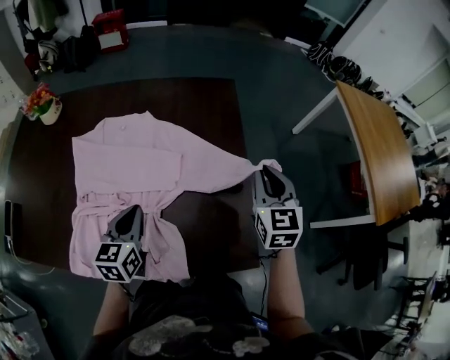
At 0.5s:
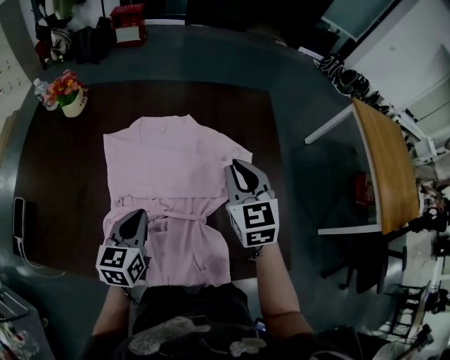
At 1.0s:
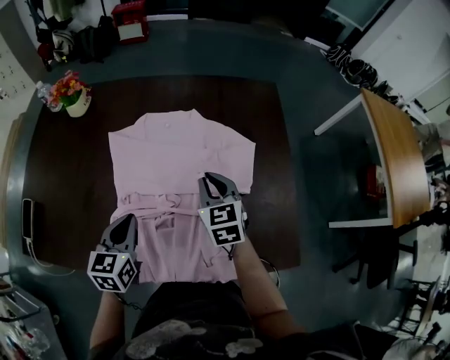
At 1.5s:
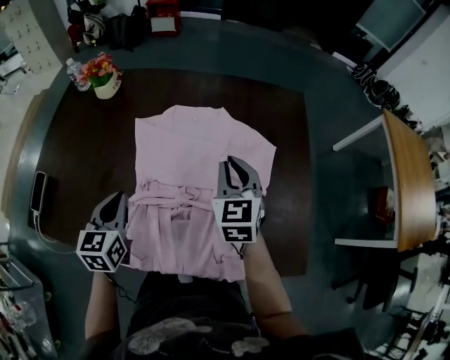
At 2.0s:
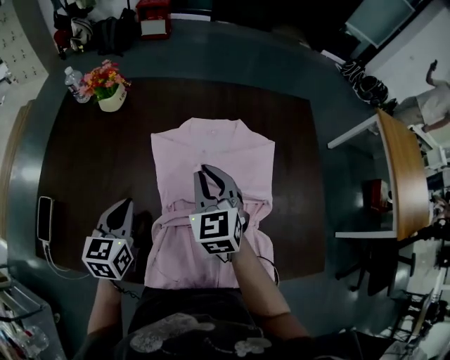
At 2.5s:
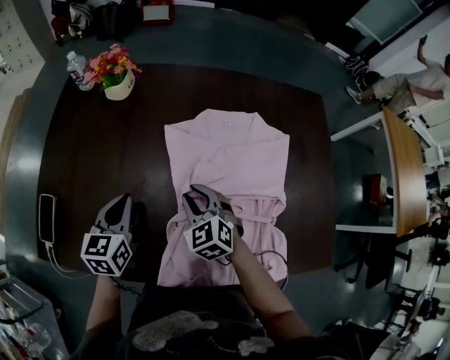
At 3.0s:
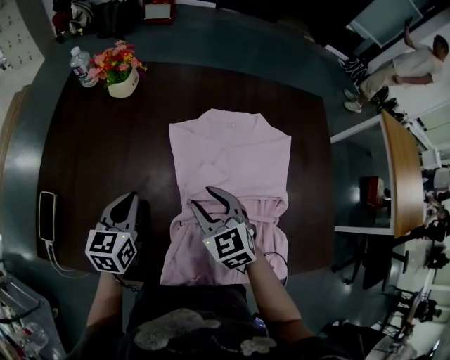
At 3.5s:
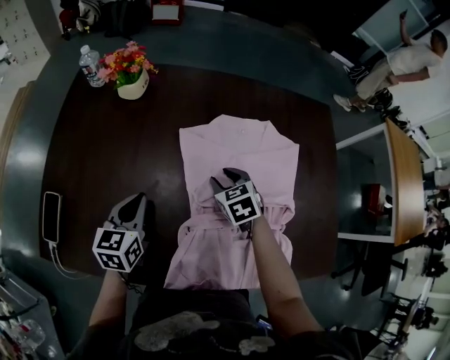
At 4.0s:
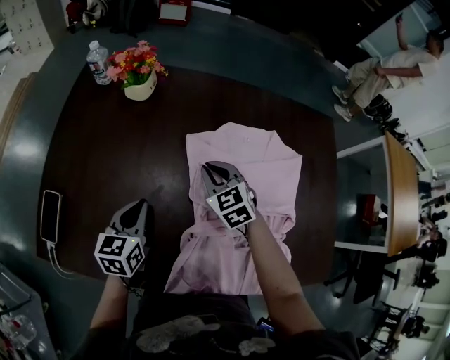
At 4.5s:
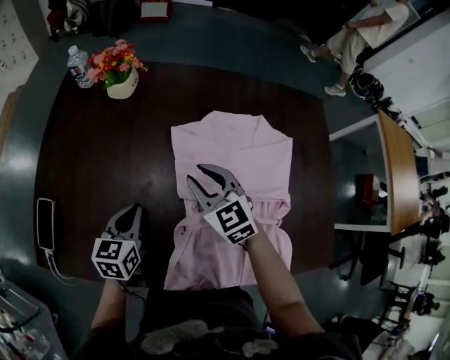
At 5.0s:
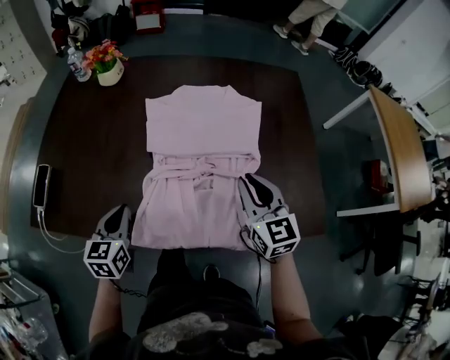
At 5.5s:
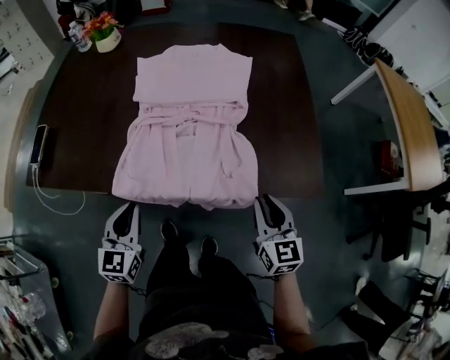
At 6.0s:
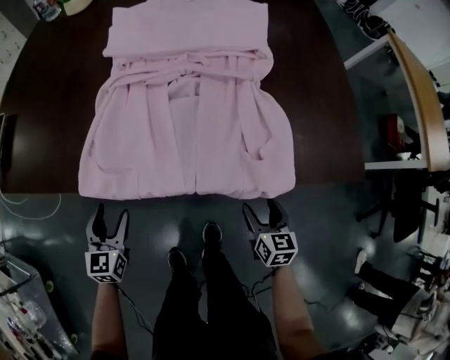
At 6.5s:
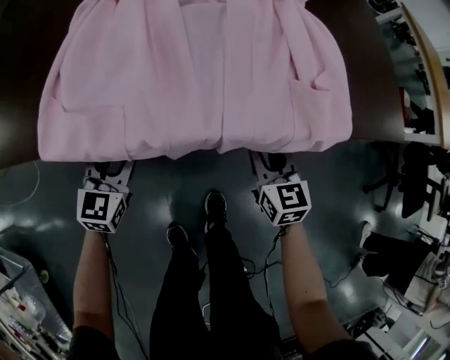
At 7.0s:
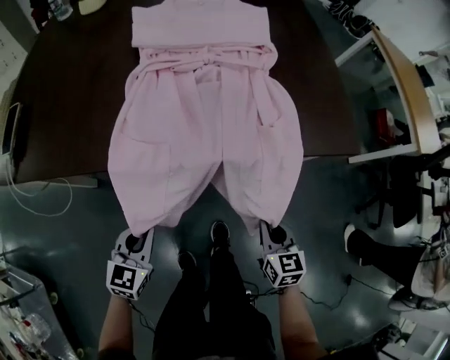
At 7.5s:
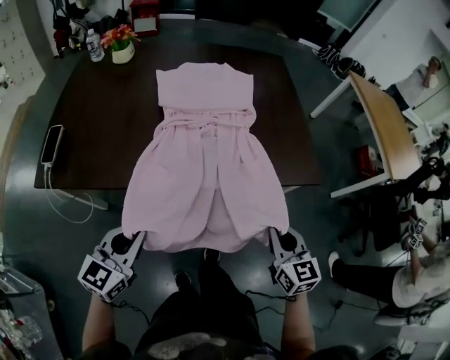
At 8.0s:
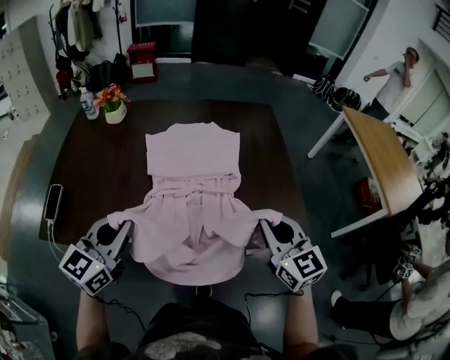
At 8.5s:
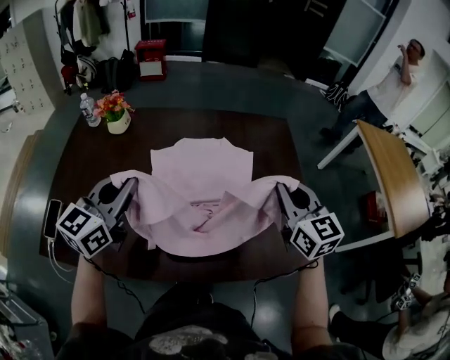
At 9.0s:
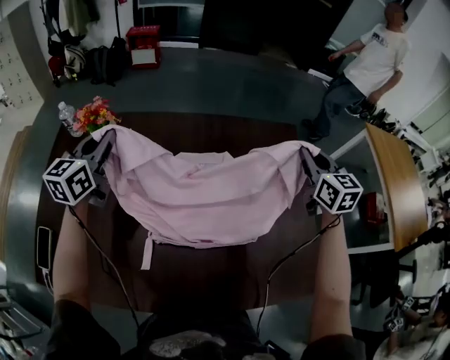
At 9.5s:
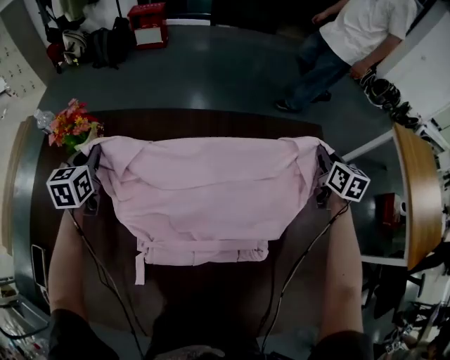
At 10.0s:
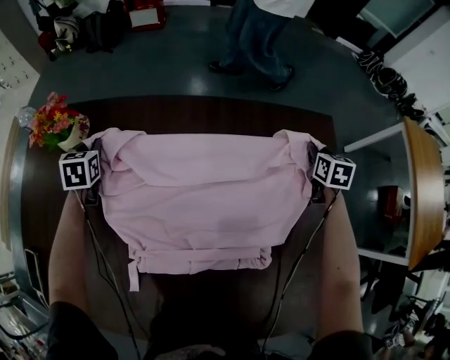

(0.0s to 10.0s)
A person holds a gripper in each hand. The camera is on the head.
0.0s - 2.0s: The grippers both shift to the left by some 40 cm.
2.0s - 4.0s: The right gripper swings up and down, some 15 cm each way, with 3 reversals, changes its angle by some 20 degrees, and opens and closes again, while the left gripper heads to the left and downward, covering some 10 cm.
4.0s - 6.0s: The left gripper moves backward and downward, approximately 40 cm, and opens up. Meanwhile the right gripper goes some 60 cm backward, to the right and downward, rolls clockwise, seen from behind, by roughly 40 degrees, and opens up.
6.0s - 8.0s: The two grippers go some 40 cm upward. The right gripper rotates some 30 degrees, and closes up; the left gripper turns by about 30 degrees, and closes its fingers.
8.0s - 10.0s: The pair of grippers is taken forward, some 60 cm. The right gripper angles its fingers downward, by roughly 30 degrees. Meanwhile the left gripper goes some 25 cm downward, and points its fingers some 40 degrees further downward.

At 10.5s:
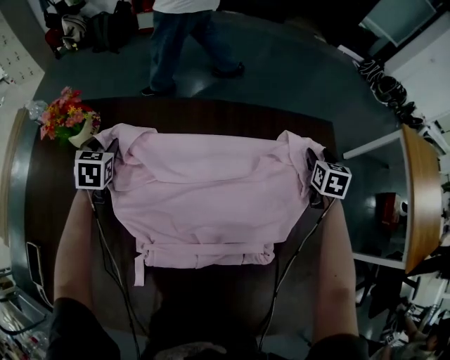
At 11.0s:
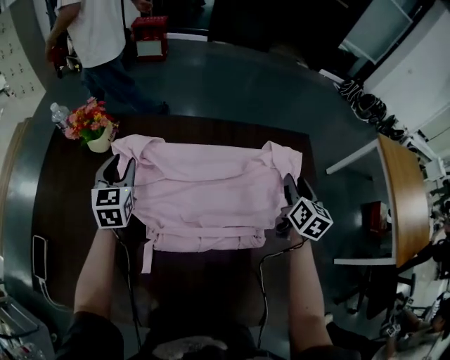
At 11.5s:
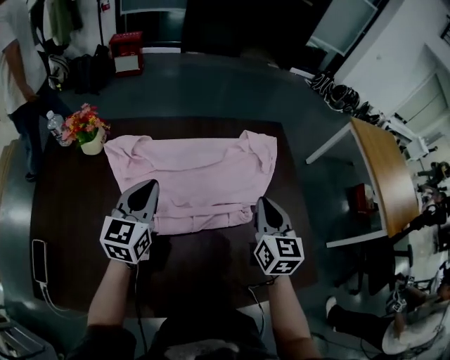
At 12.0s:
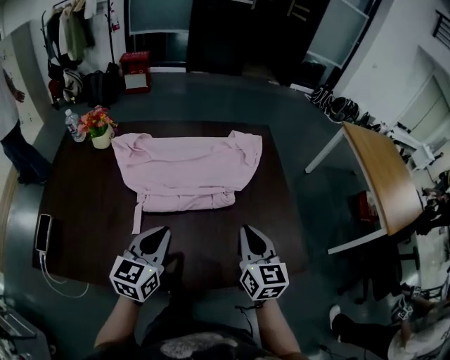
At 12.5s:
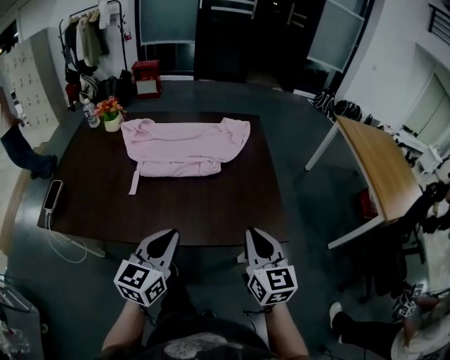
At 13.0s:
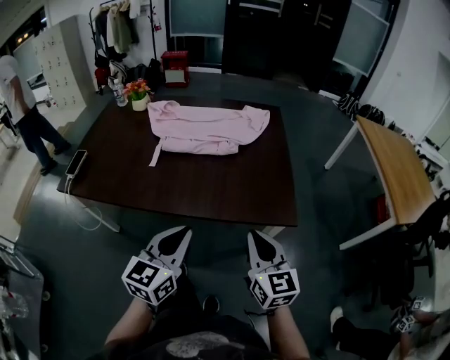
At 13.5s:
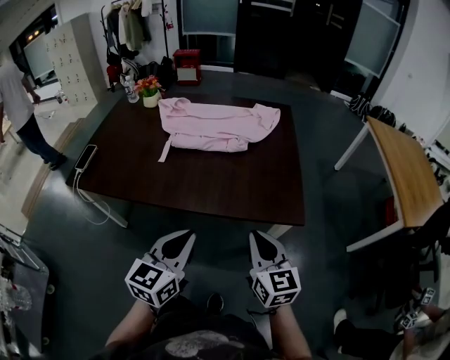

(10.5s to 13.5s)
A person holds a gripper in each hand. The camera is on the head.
10.5s - 12.0s: The left gripper goes some 50 cm backward, to the right and upward, turns by about 40 degrees, and closes its fingers; the right gripper goes some 50 cm backward, swivels about 30 degrees, and closes its fingers.
12.0s - 13.5s: The right gripper goes roughly 30 cm backward, while the left gripper shifts some 35 cm backward and to the right.

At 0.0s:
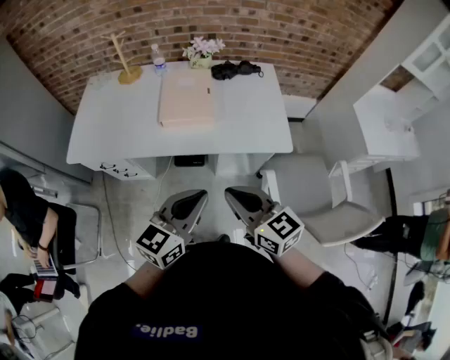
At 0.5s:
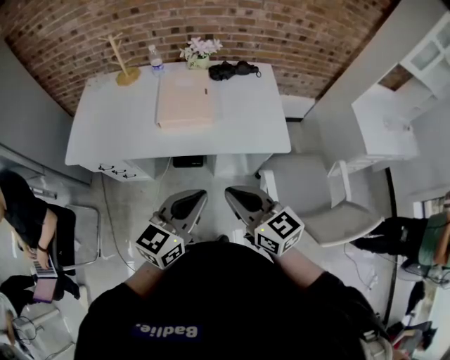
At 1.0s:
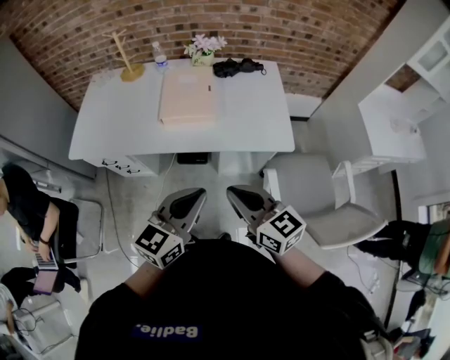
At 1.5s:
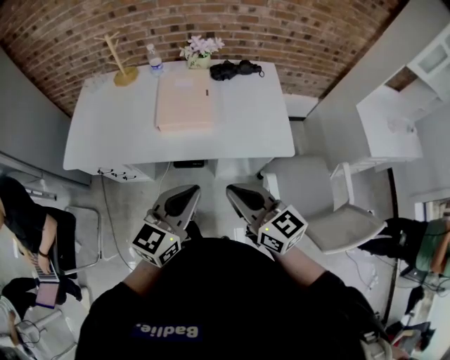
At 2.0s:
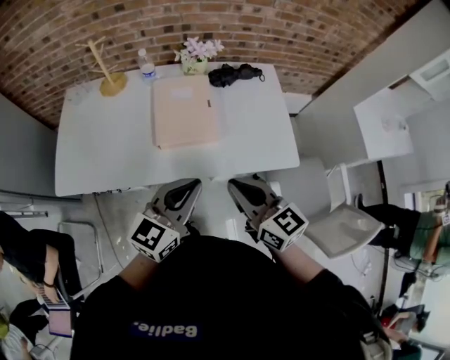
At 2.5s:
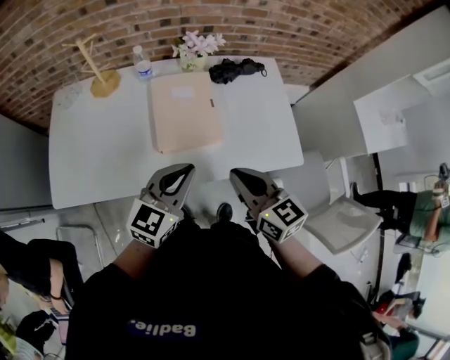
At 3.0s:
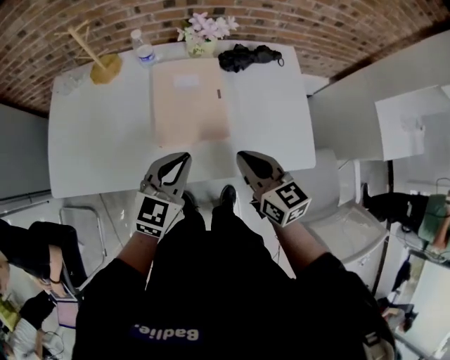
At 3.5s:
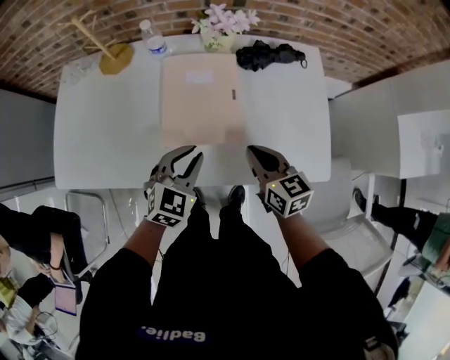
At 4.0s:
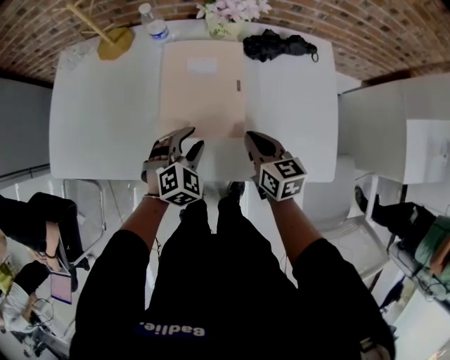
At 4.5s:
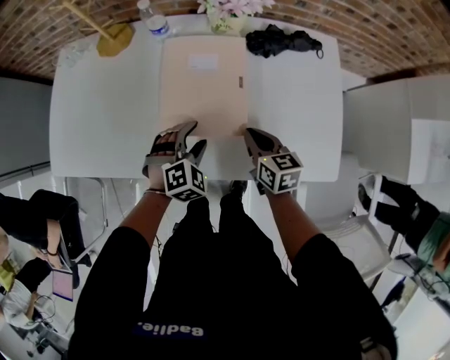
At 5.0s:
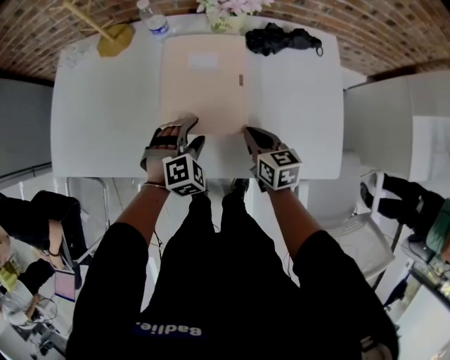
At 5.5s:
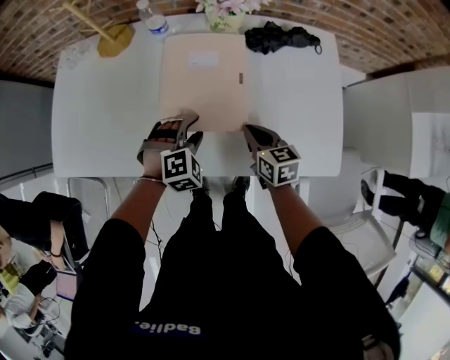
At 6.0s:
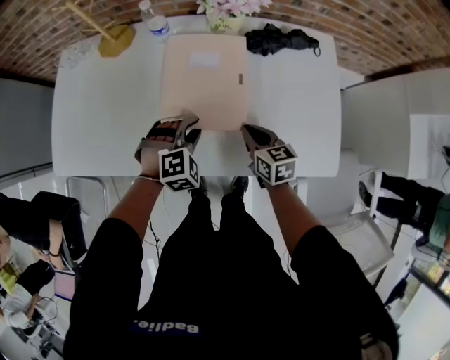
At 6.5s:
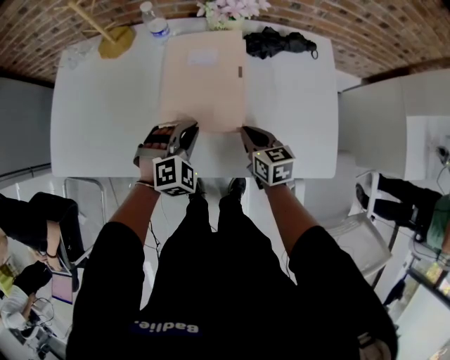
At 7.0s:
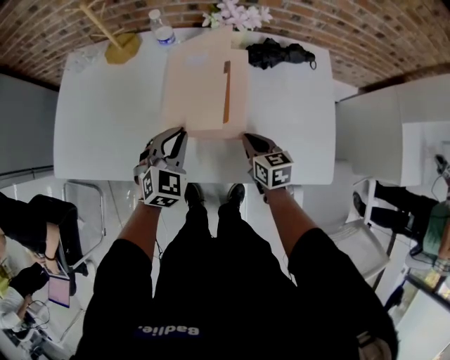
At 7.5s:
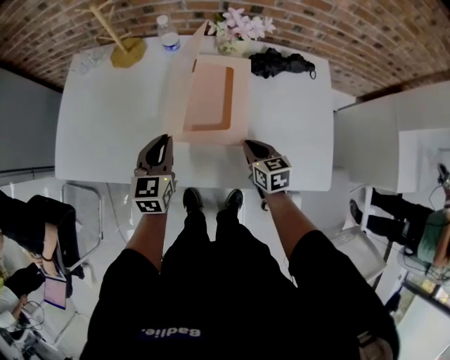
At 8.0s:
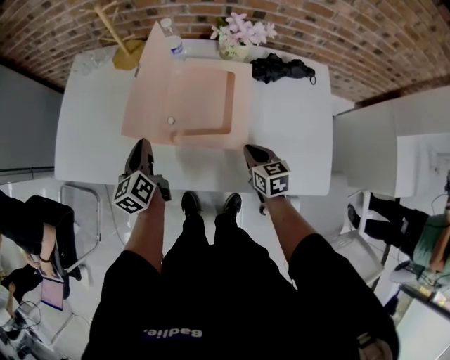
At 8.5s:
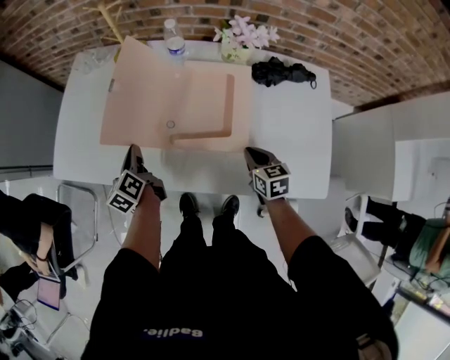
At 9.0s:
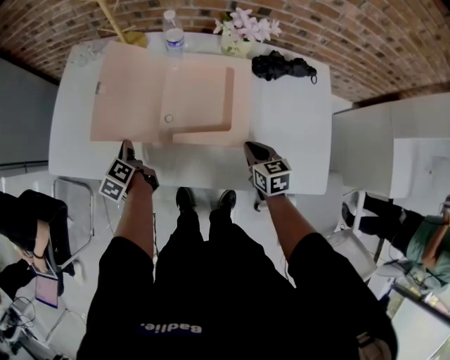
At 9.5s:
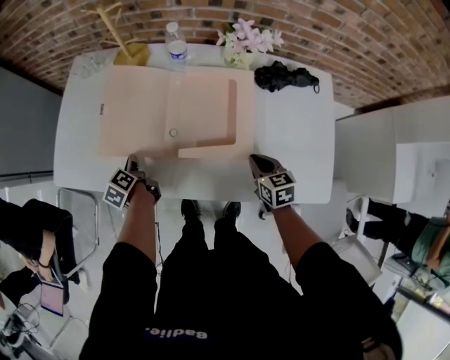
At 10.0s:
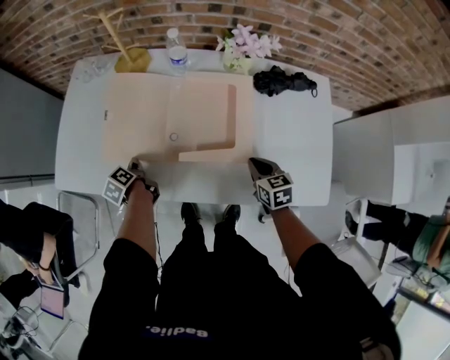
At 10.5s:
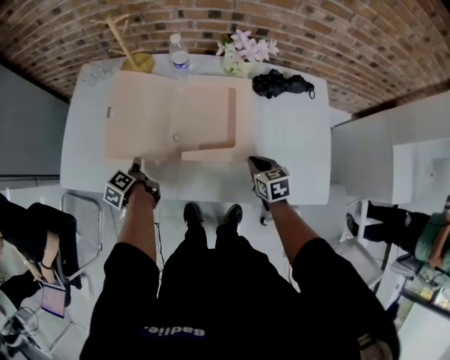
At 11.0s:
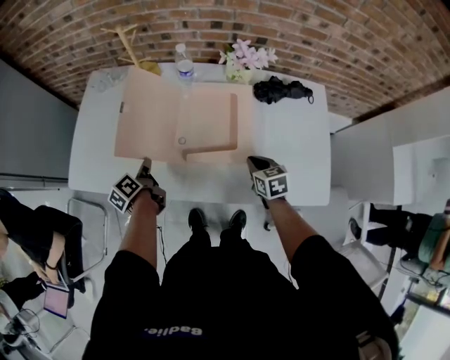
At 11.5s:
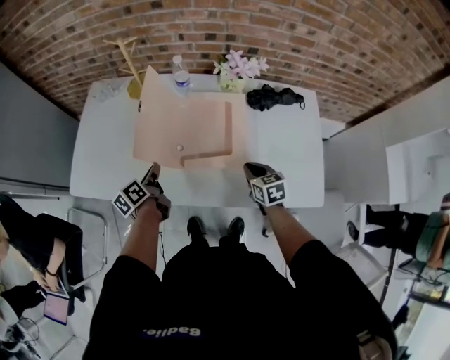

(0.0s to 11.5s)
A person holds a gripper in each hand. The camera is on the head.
0.0s - 2.0s: The grippers both shift forward by some 15 cm.
2.0s - 4.0s: Both grippers travel together downward and forward, approximately 30 cm. The left gripper tilts its fingers roughly 40 degrees downward, and opens its fingers.
4.0s - 6.0s: The left gripper swivels approximately 20 degrees. Meanwhile the right gripper heads downward, covering approximately 5 cm.
6.0s - 7.5s: The left gripper is displaced to the left and upward by approximately 15 cm, rotates around the line of its fingers by some 70 degrees, counterclockwise from behind, and closes its fingers.
7.5s - 9.5s: The left gripper moves to the left and downward, some 25 cm, and twists some 60 degrees counterclockwise, seen from behind.
9.5s - 11.5s: The left gripper heads upward and to the right, covering approximately 15 cm, and changes its angle by approximately 30 degrees.

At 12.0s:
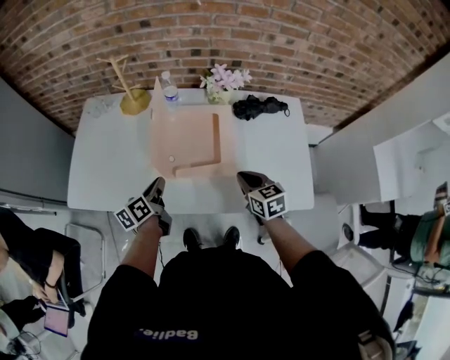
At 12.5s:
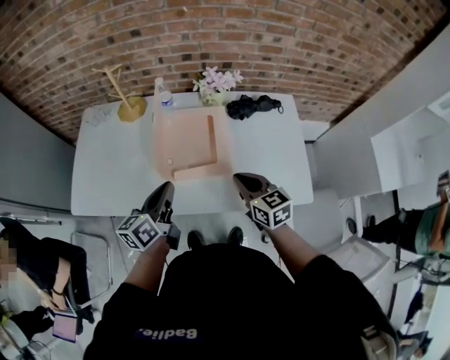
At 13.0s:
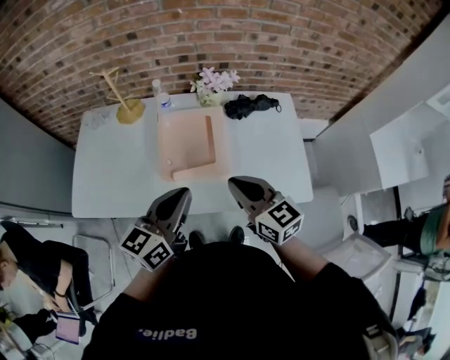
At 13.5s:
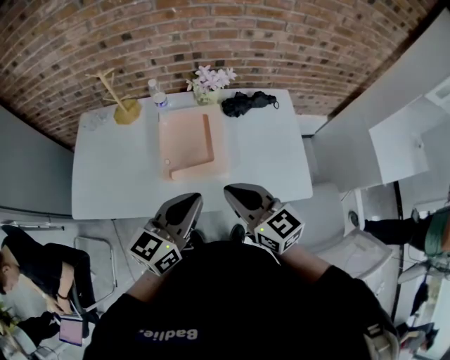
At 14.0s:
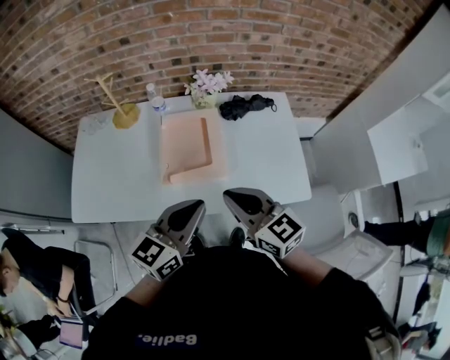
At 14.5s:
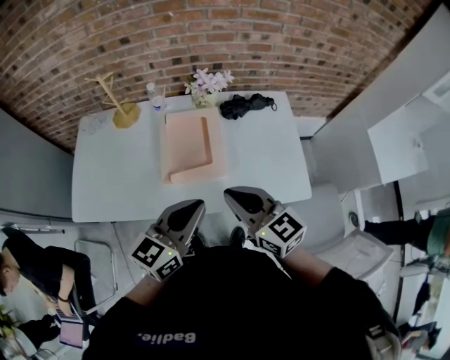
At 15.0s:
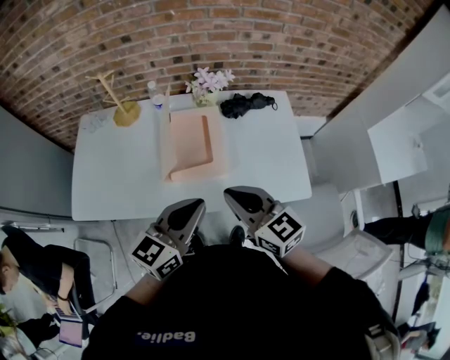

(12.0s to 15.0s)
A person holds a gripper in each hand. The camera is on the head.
12.0s - 13.5s: The right gripper goes roughly 20 cm upward and backward, and swivels approximately 20 degrees, while the left gripper heads upward, to the right and backward, covering about 30 cm, and swivels approximately 50 degrees.
13.5s - 15.0s: The grippers make only small movements.
